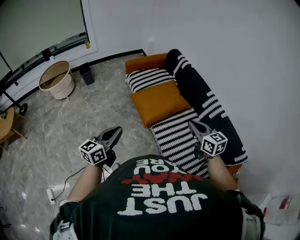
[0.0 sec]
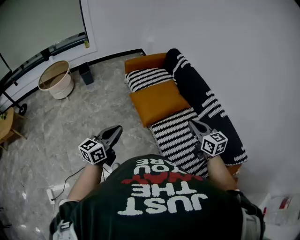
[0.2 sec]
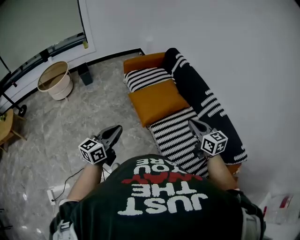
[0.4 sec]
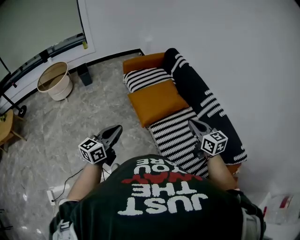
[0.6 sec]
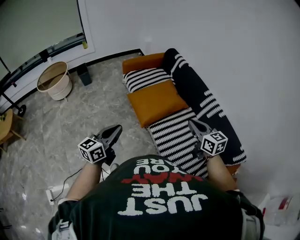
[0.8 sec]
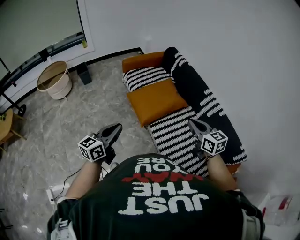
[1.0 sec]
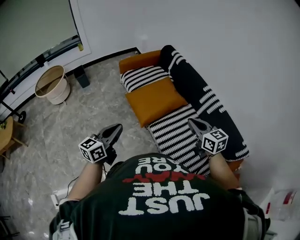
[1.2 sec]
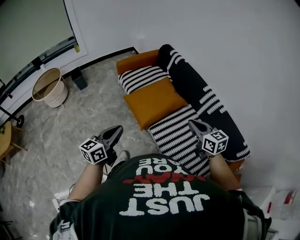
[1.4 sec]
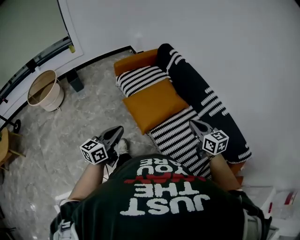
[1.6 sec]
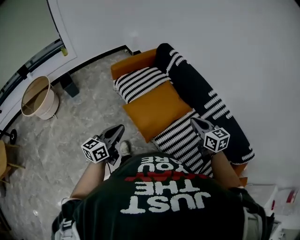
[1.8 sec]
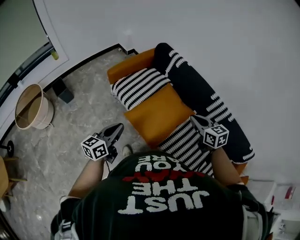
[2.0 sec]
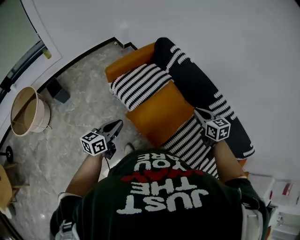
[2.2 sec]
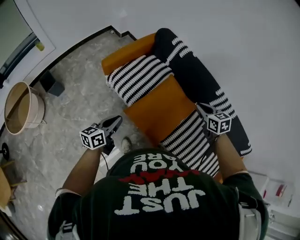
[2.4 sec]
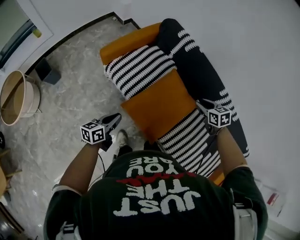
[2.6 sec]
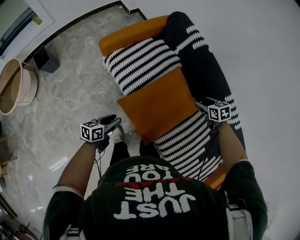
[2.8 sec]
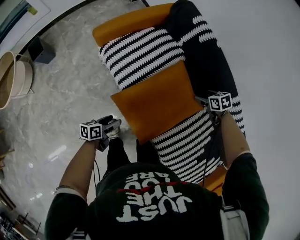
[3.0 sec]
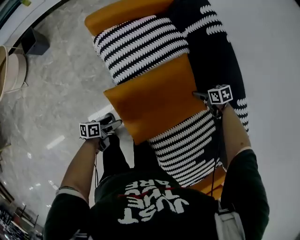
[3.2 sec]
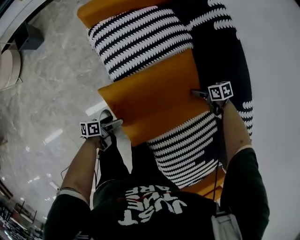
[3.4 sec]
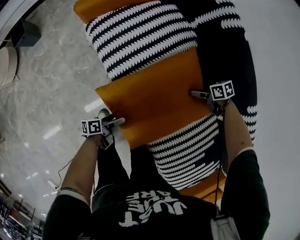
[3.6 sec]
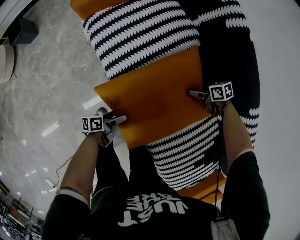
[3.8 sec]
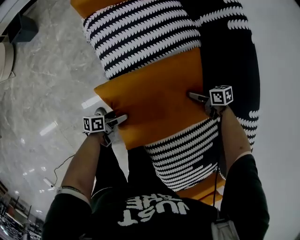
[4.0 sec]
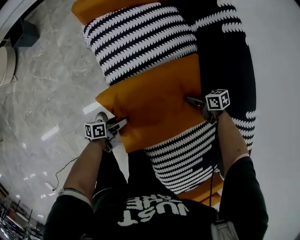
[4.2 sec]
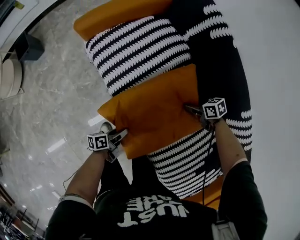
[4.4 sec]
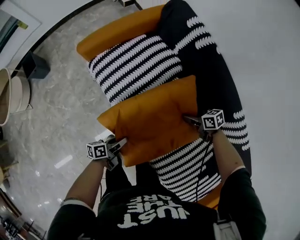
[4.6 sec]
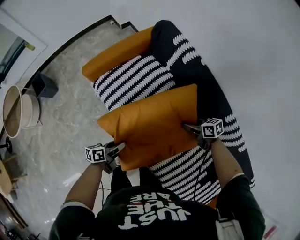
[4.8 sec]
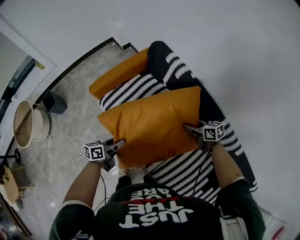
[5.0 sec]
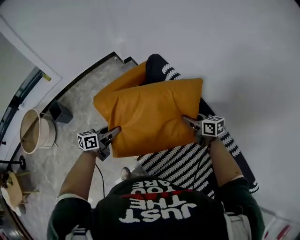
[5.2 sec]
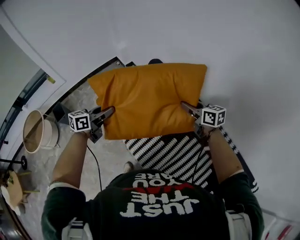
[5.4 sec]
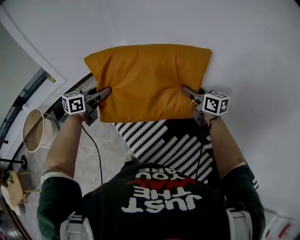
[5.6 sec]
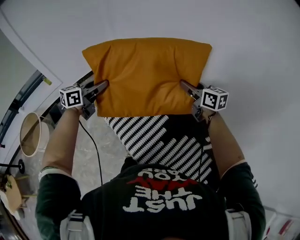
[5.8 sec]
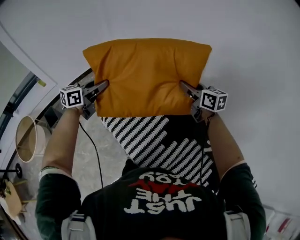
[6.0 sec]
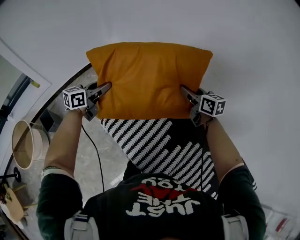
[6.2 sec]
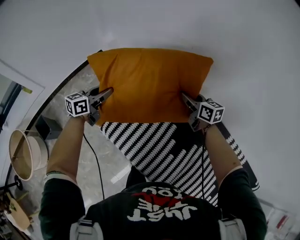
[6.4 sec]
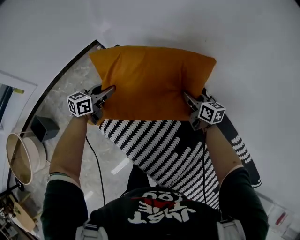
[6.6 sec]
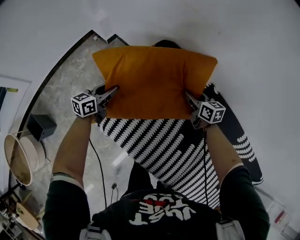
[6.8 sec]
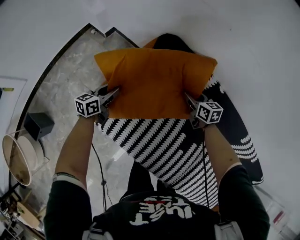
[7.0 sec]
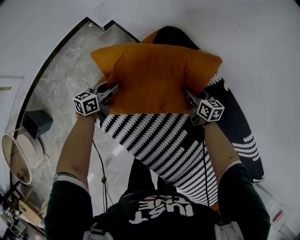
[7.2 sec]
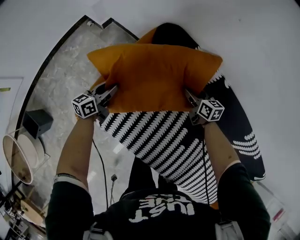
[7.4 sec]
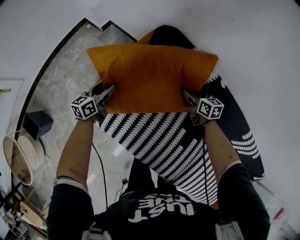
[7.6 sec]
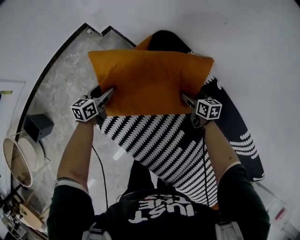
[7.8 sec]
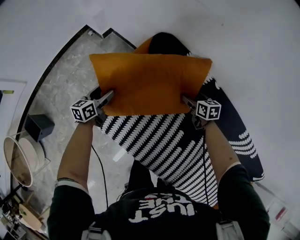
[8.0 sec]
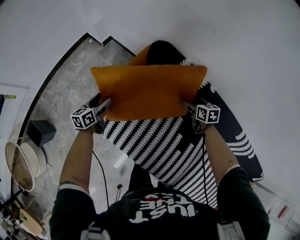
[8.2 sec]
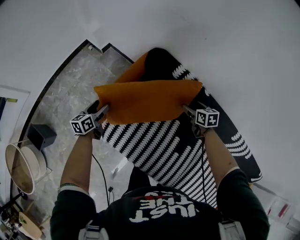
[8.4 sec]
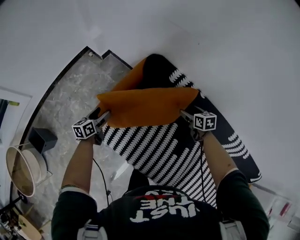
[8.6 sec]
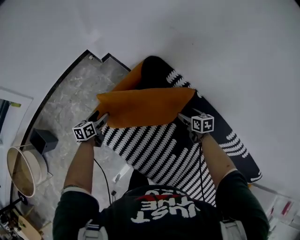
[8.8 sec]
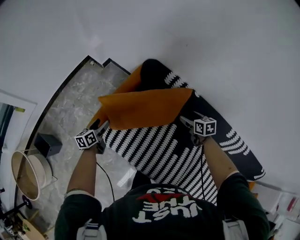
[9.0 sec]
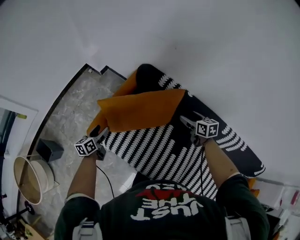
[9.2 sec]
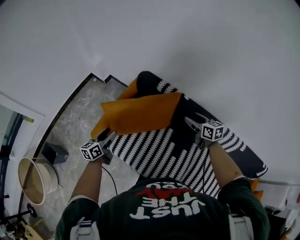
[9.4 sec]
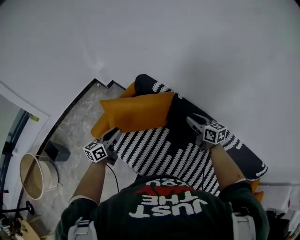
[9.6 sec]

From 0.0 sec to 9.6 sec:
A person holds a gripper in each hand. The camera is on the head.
From 0.0 sec to 1.6 sec: The left gripper heads forward, covering about 10 cm. The right gripper moves forward, some 10 cm.
From 1.6 sec to 3.2 sec: The right gripper shifts by about 60 cm, tilts its fingers approximately 40 degrees downward, and opens its fingers. Meanwhile the left gripper shifts approximately 50 cm downward, twists about 50 degrees counterclockwise, seen from behind, and opens up.
From 3.2 sec to 4.8 sec: Both grippers travel together upward, some 10 cm. The left gripper closes up. Meanwhile the right gripper turns by some 30 degrees, and closes its fingers.
From 4.8 sec to 6.4 sec: The grippers both shift forward and upward by roughly 40 cm. The left gripper changes its angle by some 40 degrees. The right gripper rotates some 40 degrees.
From 6.4 sec to 8.0 sec: Both grippers travel together downward, approximately 25 cm. The right gripper rotates about 30 degrees, and opens up. The left gripper opens up.
From 8.0 sec to 9.6 sec: The right gripper shifts roughly 35 cm upward and backward, turns by some 30 degrees, and closes its fingers. The left gripper heads upward, backward and to the right, covering some 35 cm, and closes its fingers.

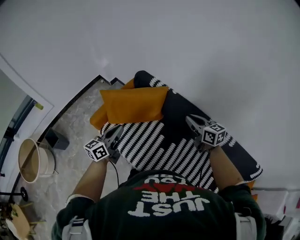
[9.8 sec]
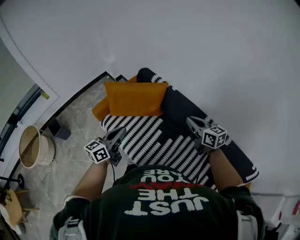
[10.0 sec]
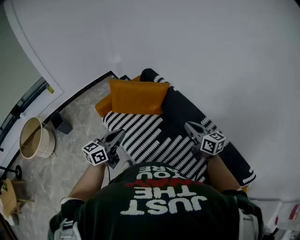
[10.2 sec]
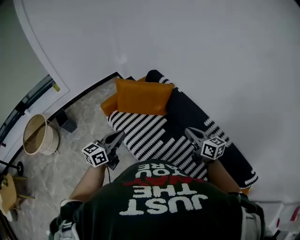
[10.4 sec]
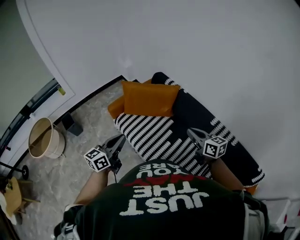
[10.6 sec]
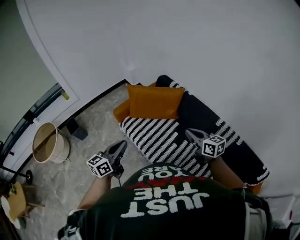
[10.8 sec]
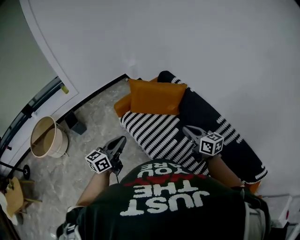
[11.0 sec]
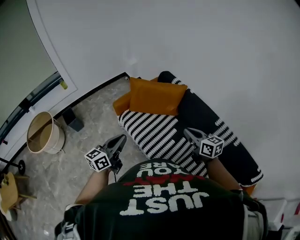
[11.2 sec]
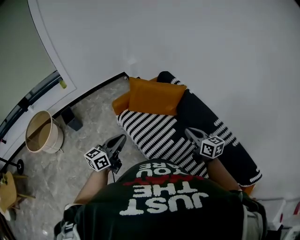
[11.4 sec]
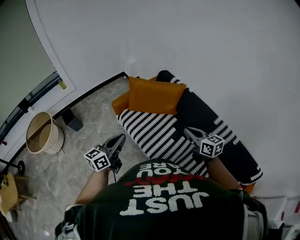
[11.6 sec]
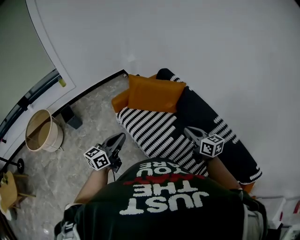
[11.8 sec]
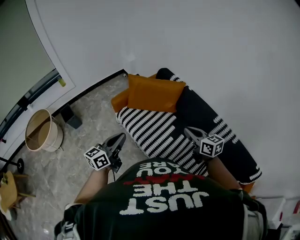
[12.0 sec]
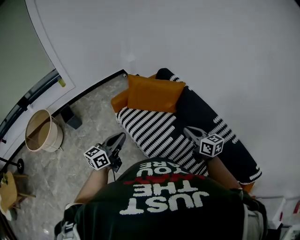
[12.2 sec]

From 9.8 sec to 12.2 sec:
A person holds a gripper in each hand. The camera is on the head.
From 9.8 sec to 11.0 sec: The right gripper is displaced backward and to the left by about 20 cm. Meanwhile the left gripper moves backward, about 25 cm.
From 11.0 sec to 12.2 sec: There are only small adjustments of the grippers.

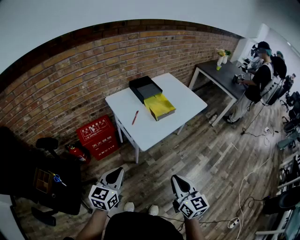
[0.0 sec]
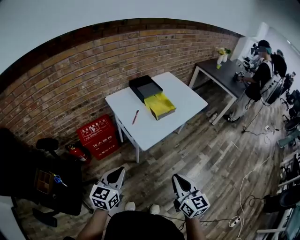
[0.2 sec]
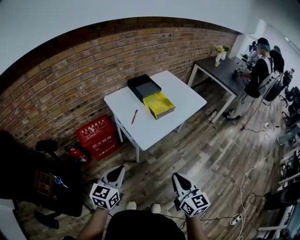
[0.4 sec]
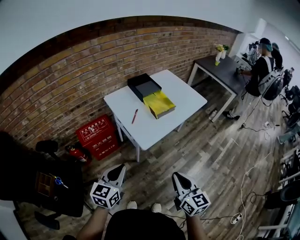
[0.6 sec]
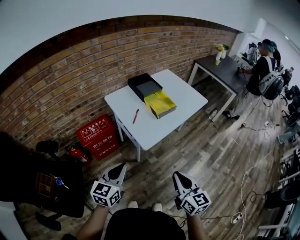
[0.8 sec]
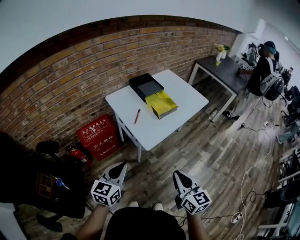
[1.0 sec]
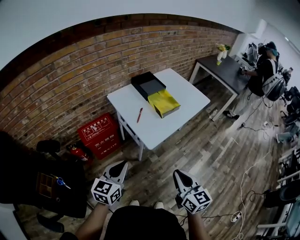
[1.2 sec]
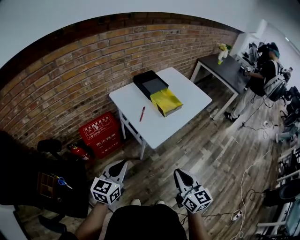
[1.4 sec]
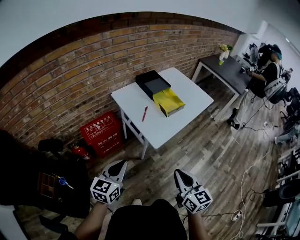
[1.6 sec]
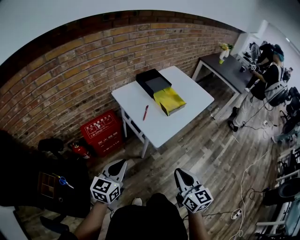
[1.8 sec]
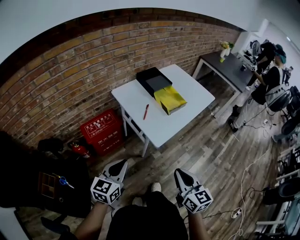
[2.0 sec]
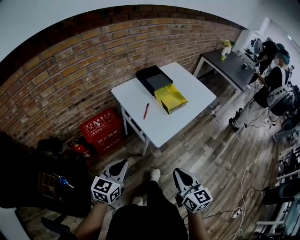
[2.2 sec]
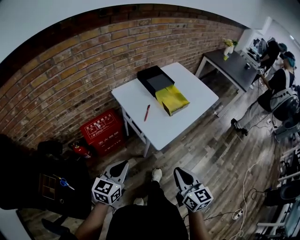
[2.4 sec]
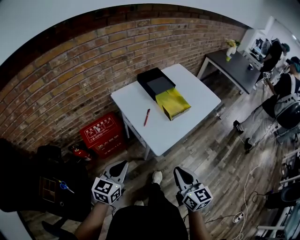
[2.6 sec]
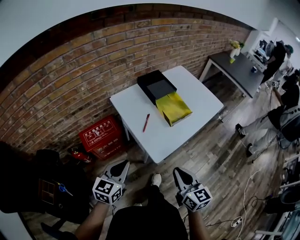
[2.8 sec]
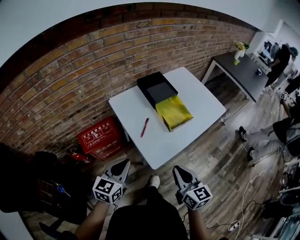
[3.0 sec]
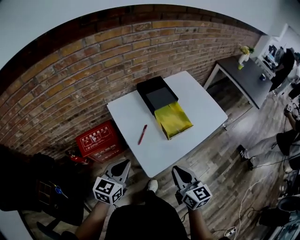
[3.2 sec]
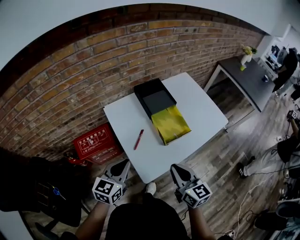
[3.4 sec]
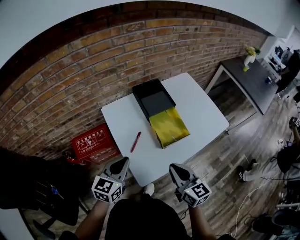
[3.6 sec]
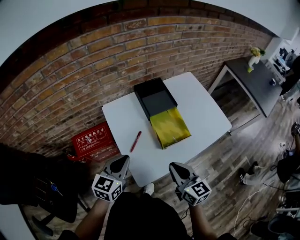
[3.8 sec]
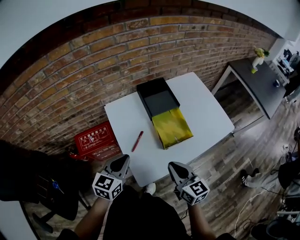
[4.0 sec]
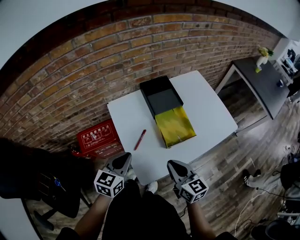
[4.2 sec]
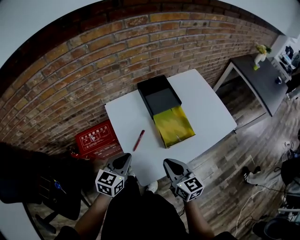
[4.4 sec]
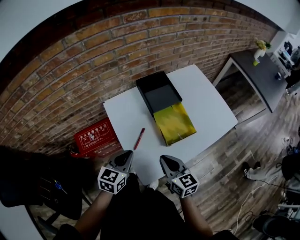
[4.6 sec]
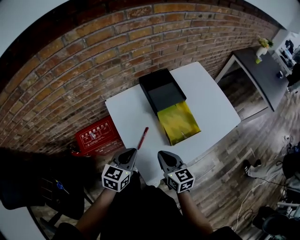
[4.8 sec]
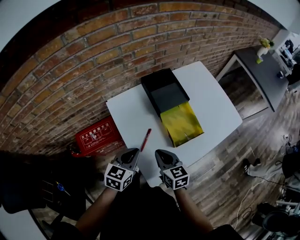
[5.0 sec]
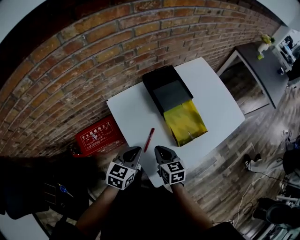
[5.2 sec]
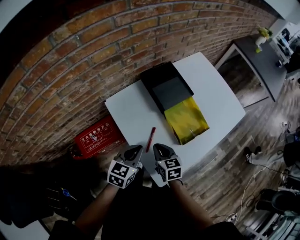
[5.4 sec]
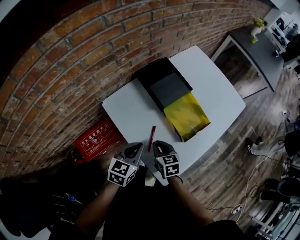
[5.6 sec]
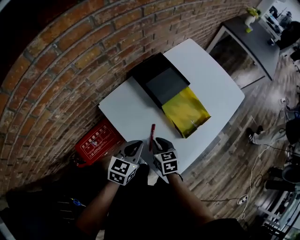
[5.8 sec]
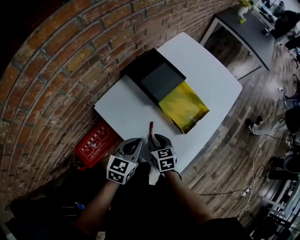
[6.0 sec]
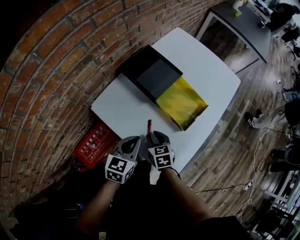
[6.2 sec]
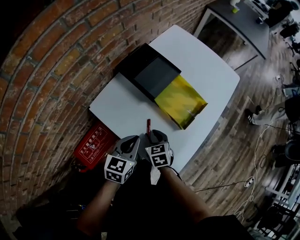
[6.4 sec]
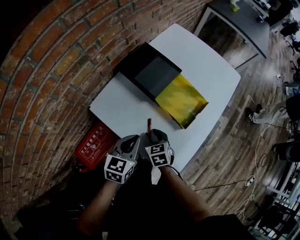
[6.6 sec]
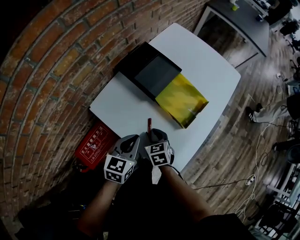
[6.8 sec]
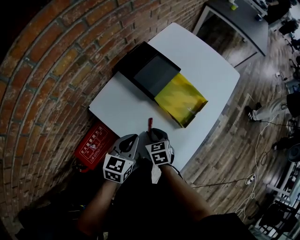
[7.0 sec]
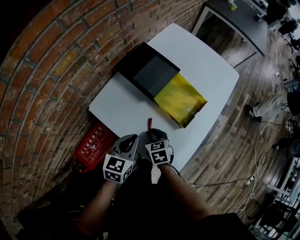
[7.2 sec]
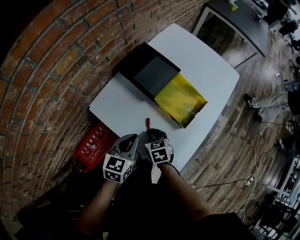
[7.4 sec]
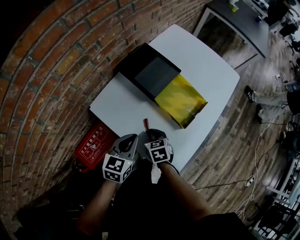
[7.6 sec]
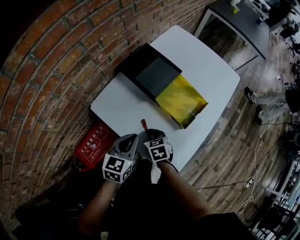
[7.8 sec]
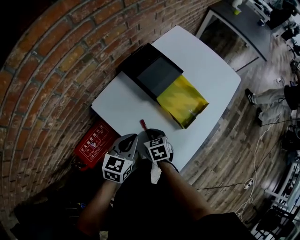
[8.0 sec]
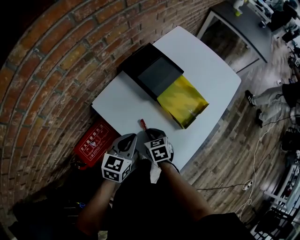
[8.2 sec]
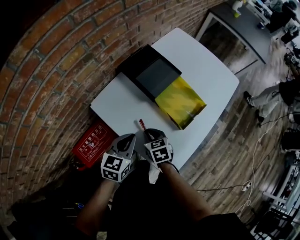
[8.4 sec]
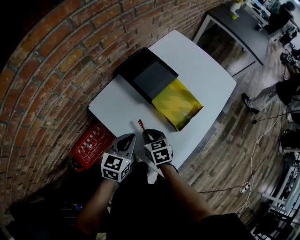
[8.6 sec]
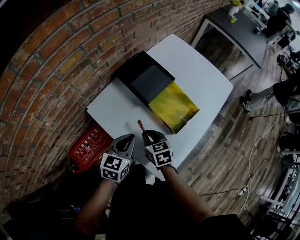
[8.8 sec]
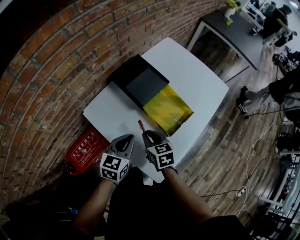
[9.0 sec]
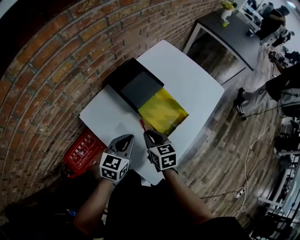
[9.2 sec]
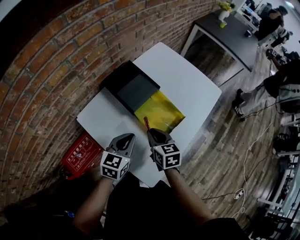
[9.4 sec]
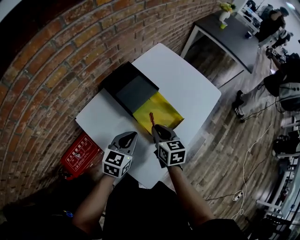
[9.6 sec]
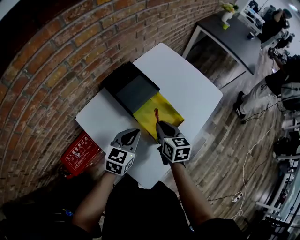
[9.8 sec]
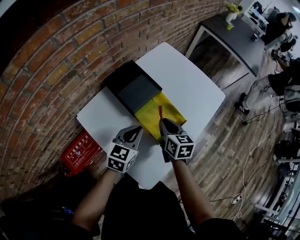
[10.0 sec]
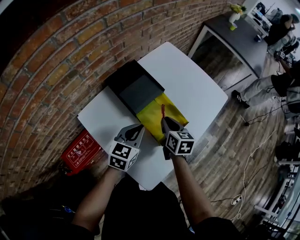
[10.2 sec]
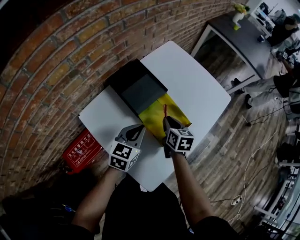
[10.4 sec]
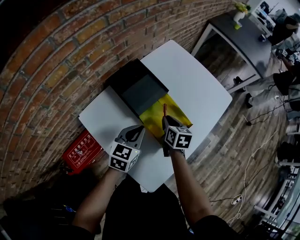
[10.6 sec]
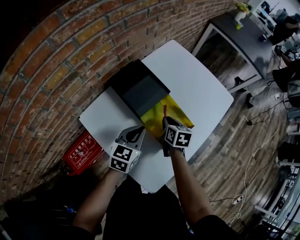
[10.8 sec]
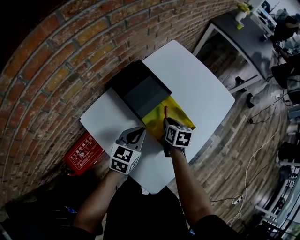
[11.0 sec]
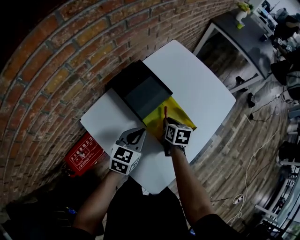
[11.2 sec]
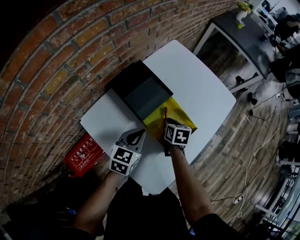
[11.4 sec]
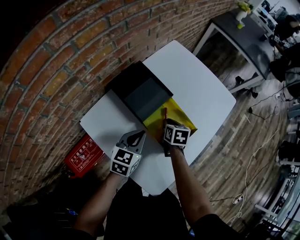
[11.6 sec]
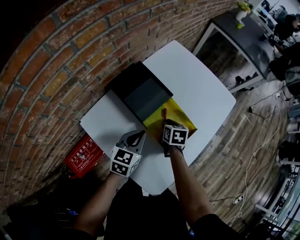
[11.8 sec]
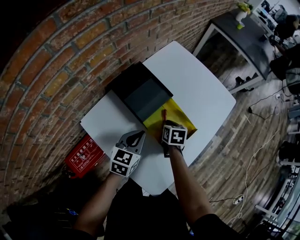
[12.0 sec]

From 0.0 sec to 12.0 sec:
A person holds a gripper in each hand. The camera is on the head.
From 0.0 sec to 1.6 sec: The two grippers go some 10 cm to the left.
From 1.6 sec to 3.0 sec: The two grippers go roughly 15 cm forward.
From 3.0 sec to 4.4 sec: The left gripper is displaced forward and to the right by roughly 15 cm. The right gripper heads forward, covering approximately 15 cm.
From 4.4 sec to 6.0 sec: The left gripper travels forward and downward by roughly 15 cm, and changes its angle by some 20 degrees. The right gripper heads downward, to the left and forward, covering roughly 25 cm, and rotates roughly 30 degrees.
From 6.0 sec to 7.6 sec: The grippers make only small movements.
From 7.6 sec to 9.0 sec: The right gripper moves upward, roughly 10 cm.
From 9.0 sec to 10.4 sec: The right gripper travels forward and to the right by approximately 20 cm. The left gripper shifts some 10 cm forward and to the right.
From 10.4 sec to 12.0 sec: The right gripper shifts roughly 5 cm downward.
